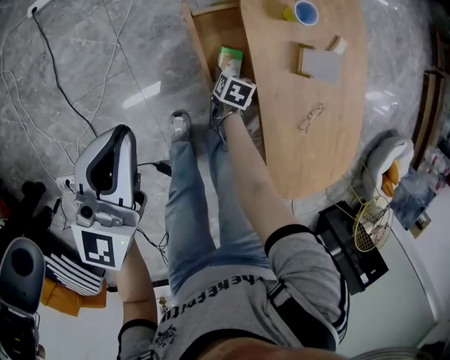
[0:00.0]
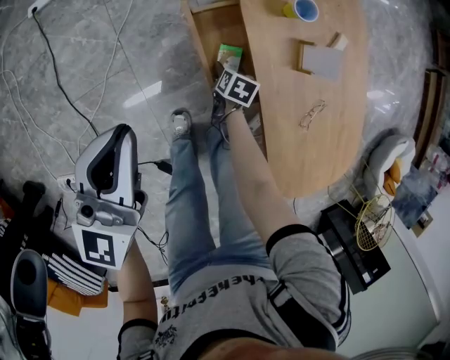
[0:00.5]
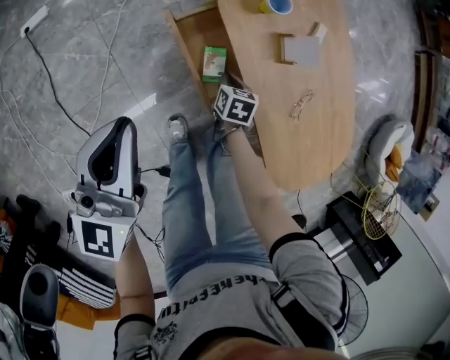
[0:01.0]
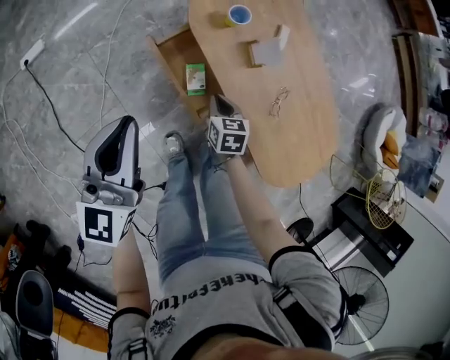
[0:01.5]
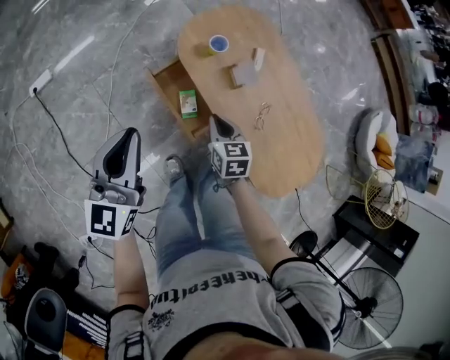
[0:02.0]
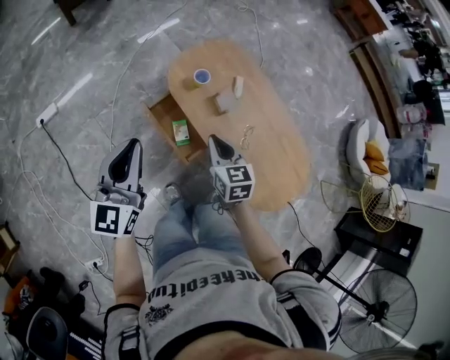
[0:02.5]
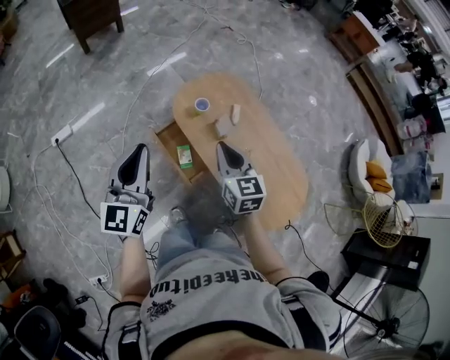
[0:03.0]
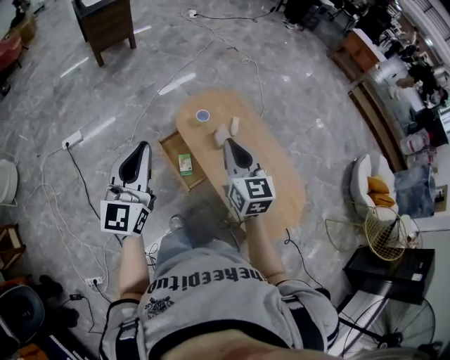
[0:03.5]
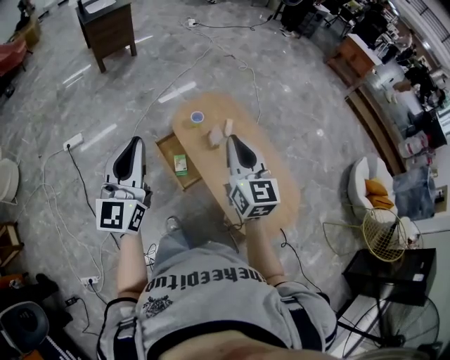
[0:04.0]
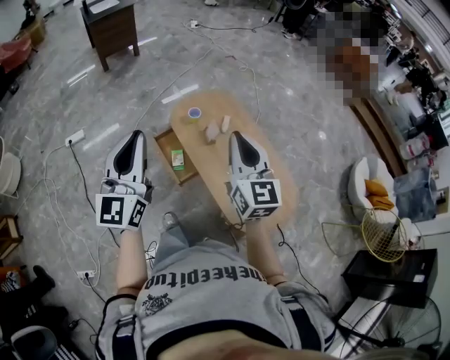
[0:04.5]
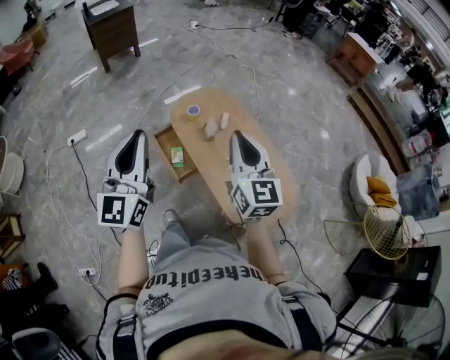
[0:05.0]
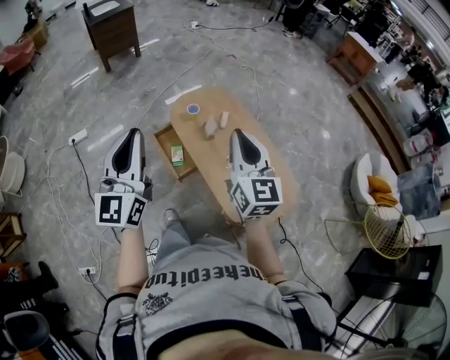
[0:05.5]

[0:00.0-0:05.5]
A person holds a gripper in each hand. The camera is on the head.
0:00.0 to 0:02.0: The left gripper moves upward, some 15 cm. The right gripper is displaced upward by about 30 cm, rotates approximately 30 degrees, and closes up.
0:02.0 to 0:03.5: The left gripper goes approximately 20 cm upward; the right gripper heads upward, covering approximately 35 cm, and points its fingers roughly 30 degrees further upward.
0:03.5 to 0:05.5: Both grippers move backward, to the right and upward, some 15 cm.

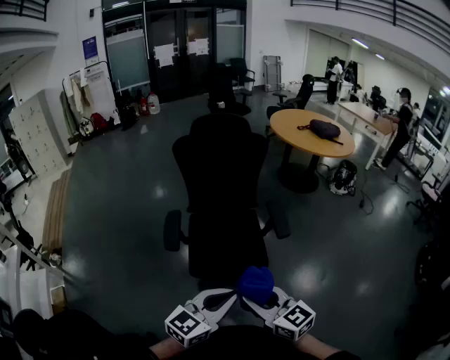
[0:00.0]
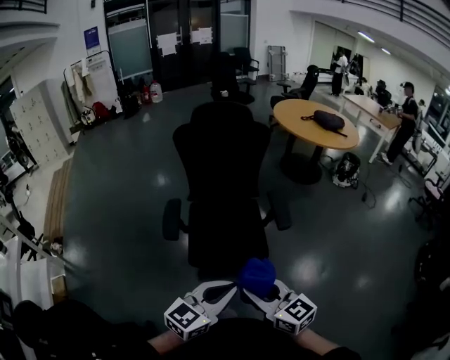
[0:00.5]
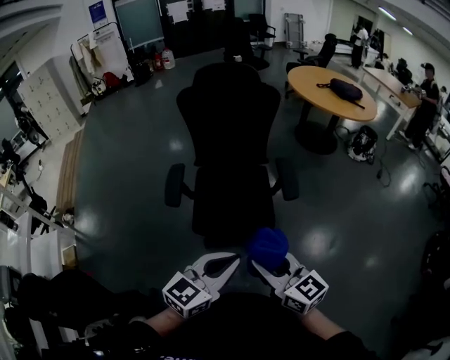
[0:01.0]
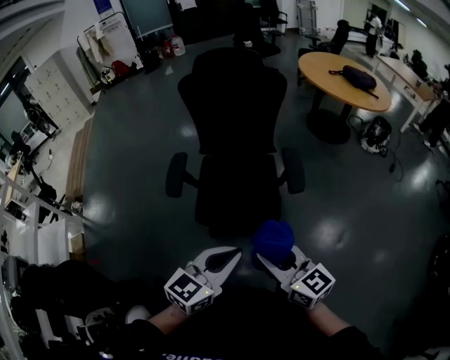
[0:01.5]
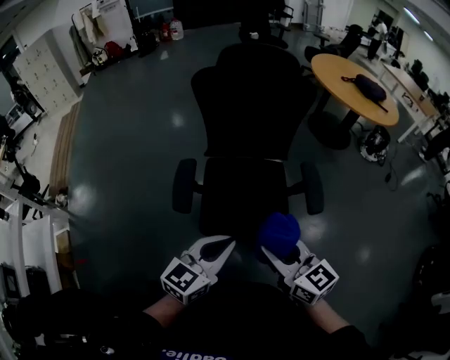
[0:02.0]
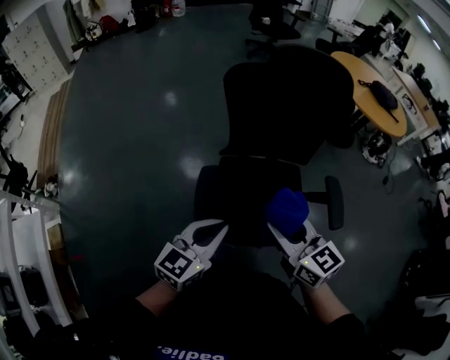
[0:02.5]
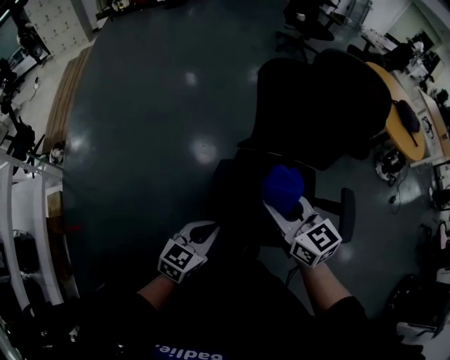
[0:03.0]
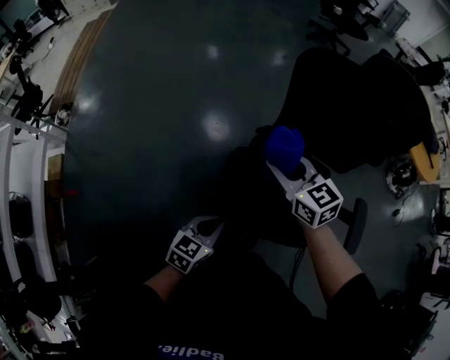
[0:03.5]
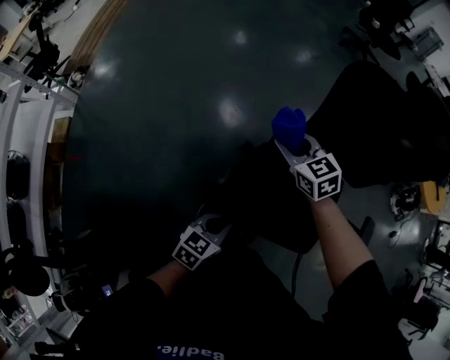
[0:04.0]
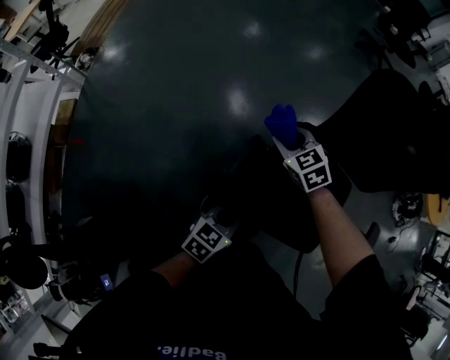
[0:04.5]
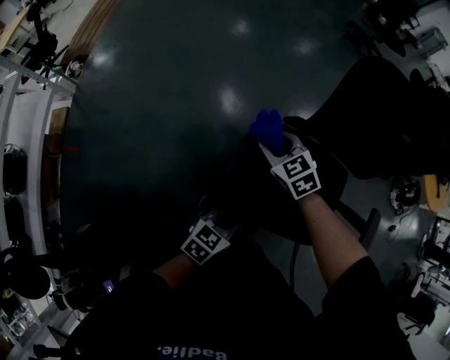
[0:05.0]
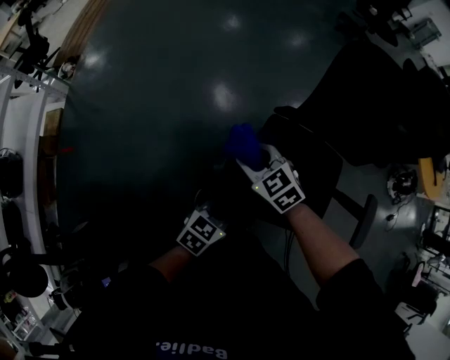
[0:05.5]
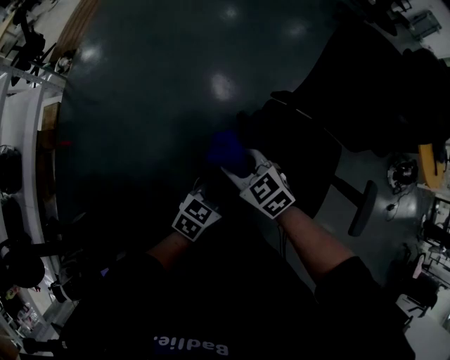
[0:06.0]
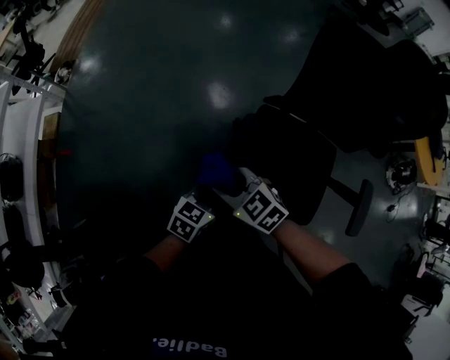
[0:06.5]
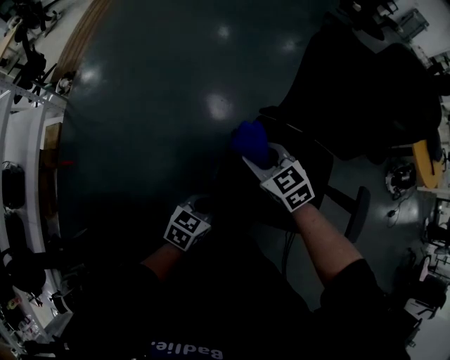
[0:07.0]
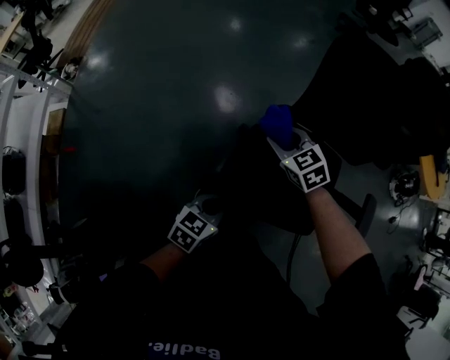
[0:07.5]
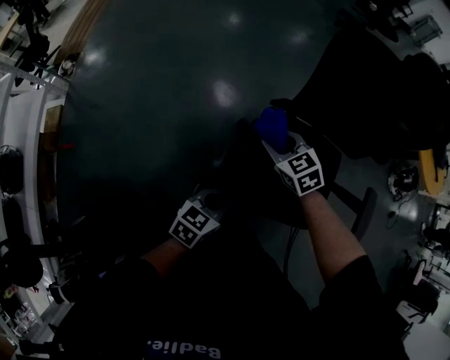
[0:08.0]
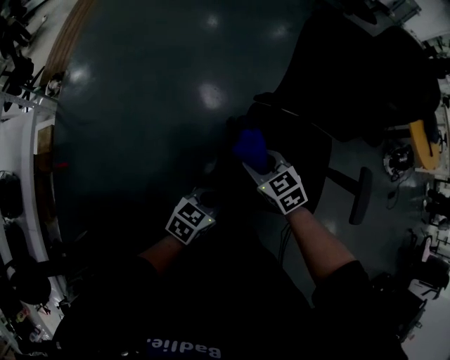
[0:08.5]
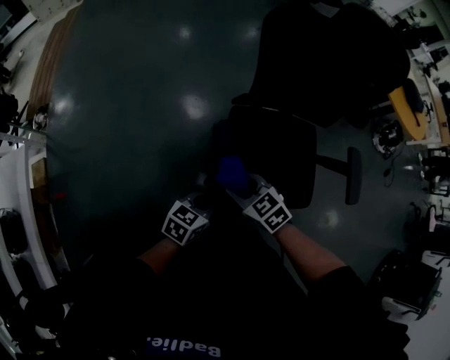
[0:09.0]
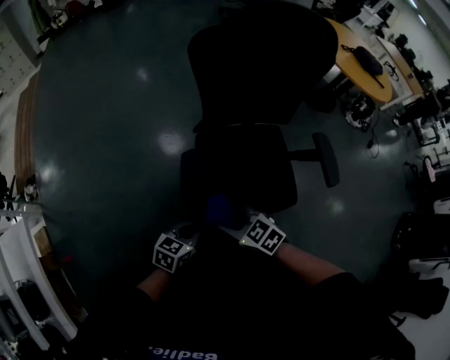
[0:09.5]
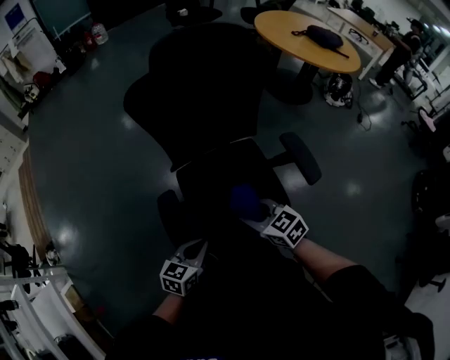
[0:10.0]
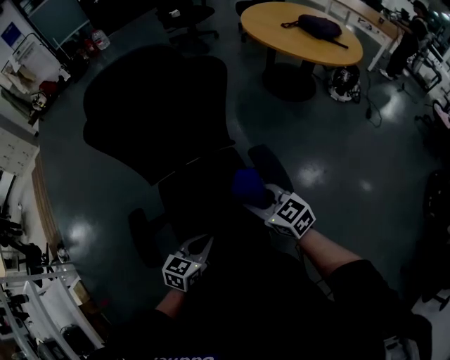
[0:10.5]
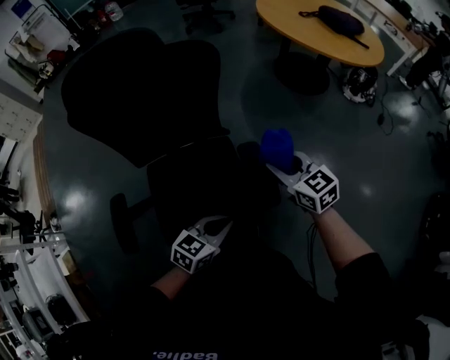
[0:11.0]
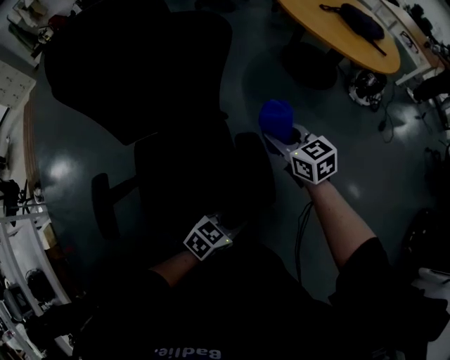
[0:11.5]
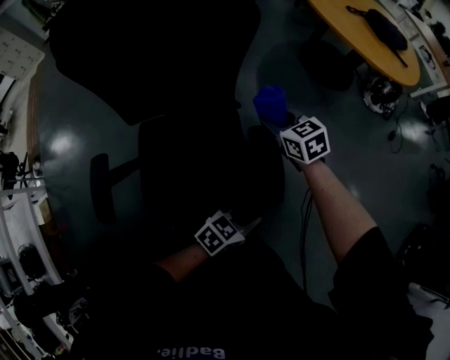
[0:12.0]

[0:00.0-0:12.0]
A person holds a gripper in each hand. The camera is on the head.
0:00.0 to 0:02.0: Both grippers travel together forward, roughly 15 cm.
0:02.0 to 0:04.0: The left gripper shifts some 35 cm downward, to the left and forward, and rotates approximately 30 degrees. Meanwhile the right gripper heads forward, to the left and downward, covering about 50 cm, and swivels approximately 40 degrees.
0:04.0 to 0:06.0: The right gripper travels backward and to the left by roughly 20 cm, and rotates approximately 20 degrees.
0:06.0 to 0:08.0: The right gripper is displaced to the right and forward by about 15 cm.
0:08.0 to 0:10.0: The right gripper shifts approximately 25 cm to the right, backward and upward, and changes its angle by some 30 degrees; the left gripper is displaced to the right and upward by approximately 10 cm, and changes its angle by some 20 degrees.
0:10.0 to 0:12.0: The pair of grippers is taken to the right and forward, some 40 cm. The left gripper swivels roughly 20 degrees.

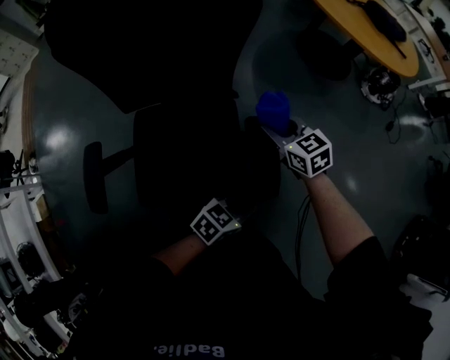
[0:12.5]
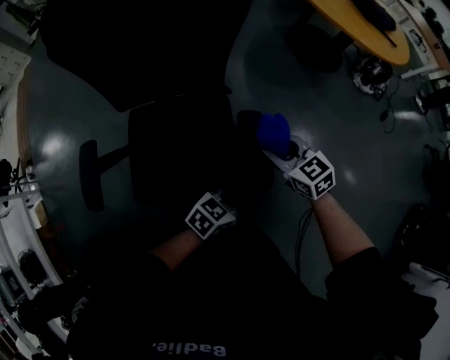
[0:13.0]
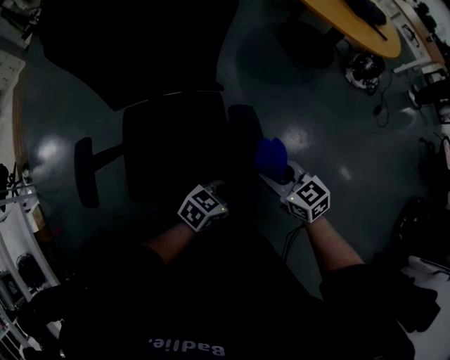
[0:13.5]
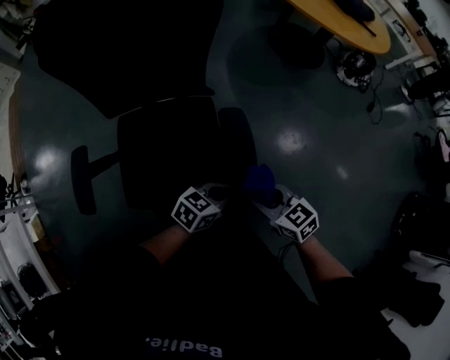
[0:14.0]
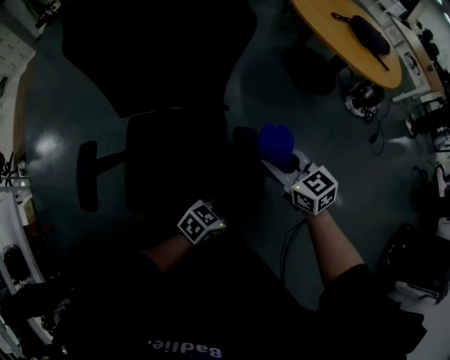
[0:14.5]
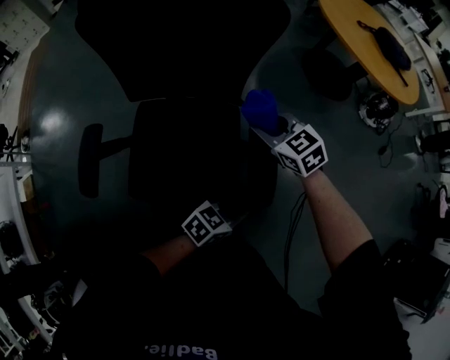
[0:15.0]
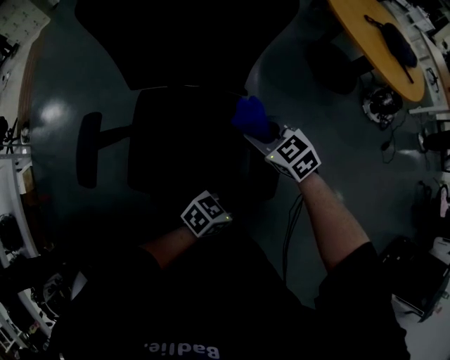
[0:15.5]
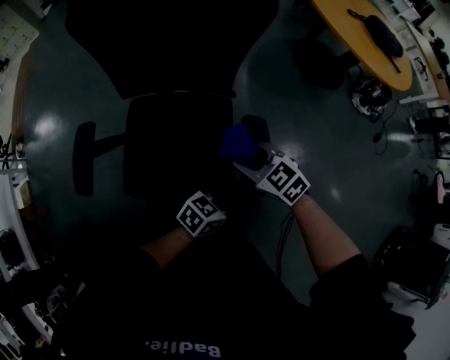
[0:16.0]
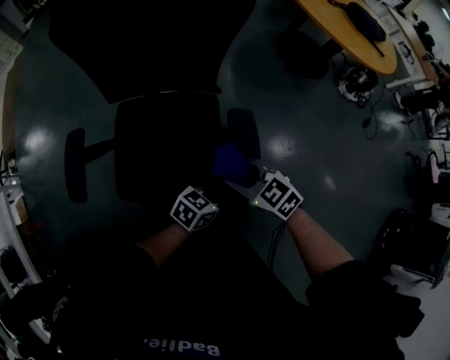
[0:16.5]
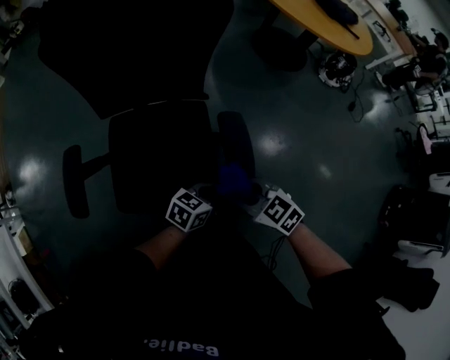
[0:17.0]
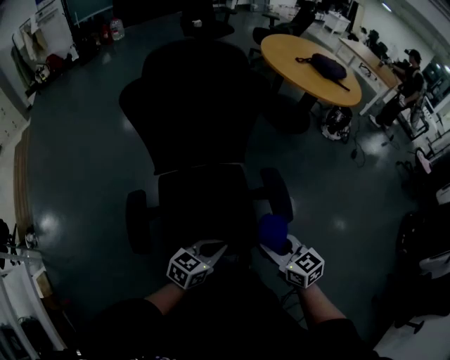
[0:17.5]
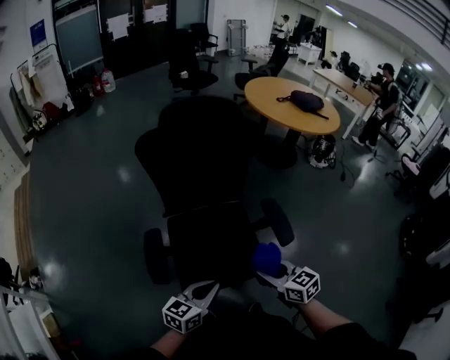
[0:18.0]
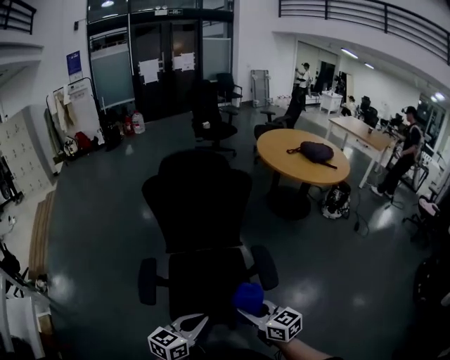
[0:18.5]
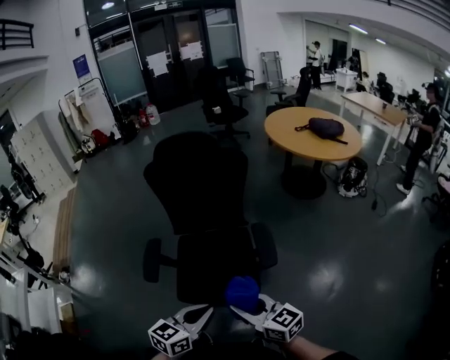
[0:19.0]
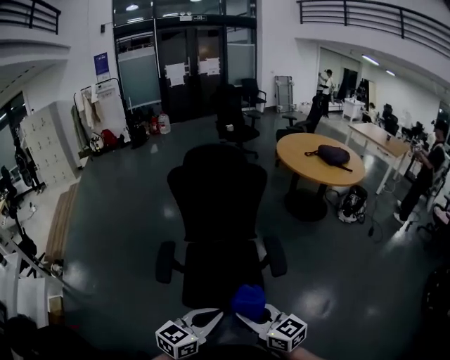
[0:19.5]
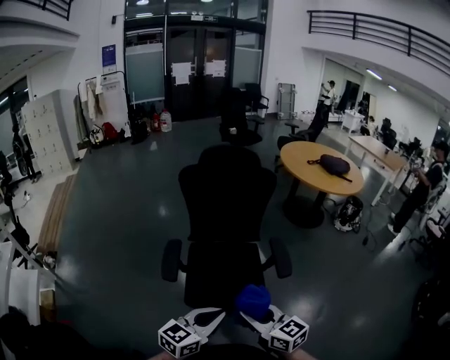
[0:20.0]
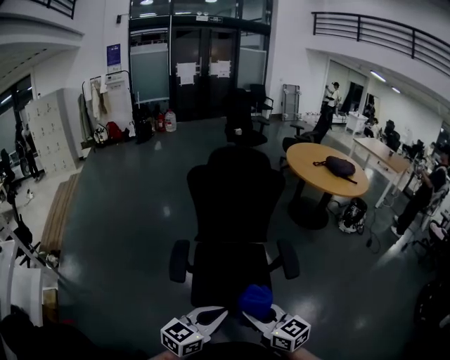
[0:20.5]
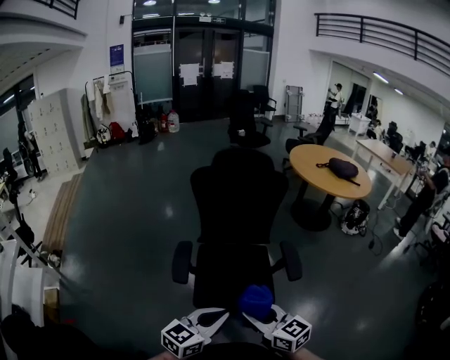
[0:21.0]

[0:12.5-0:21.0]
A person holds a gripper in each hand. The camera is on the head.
0:14.5 to 0:16.5: The right gripper ends up approximately 15 cm from where it was, and swivels roughly 20 degrees.
0:16.5 to 0:19.0: The left gripper moves some 40 cm, and changes its angle by about 30 degrees. Meanwhile the right gripper ends up roughly 35 cm from where it was, and tilts its fingers approximately 30 degrees upward.
0:19.0 to 0:21.0: The grippers both shift to the left by approximately 15 cm.

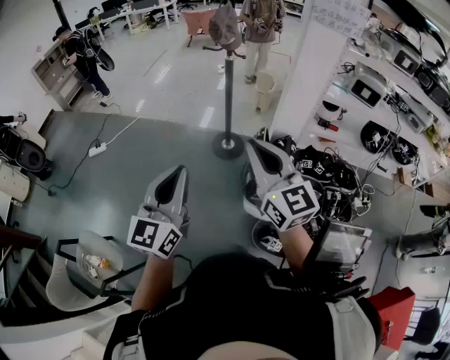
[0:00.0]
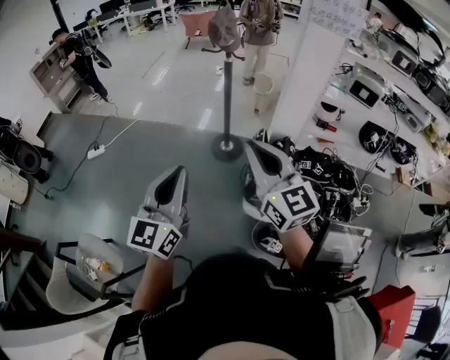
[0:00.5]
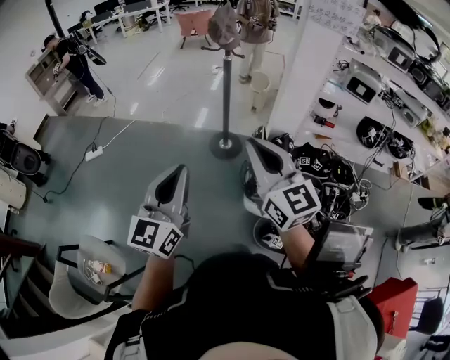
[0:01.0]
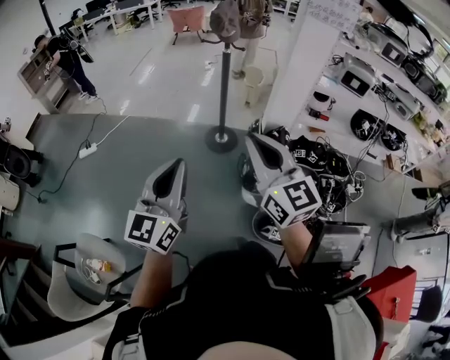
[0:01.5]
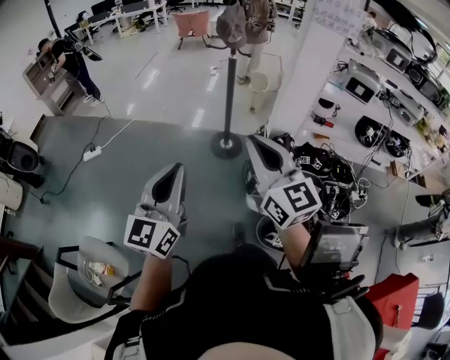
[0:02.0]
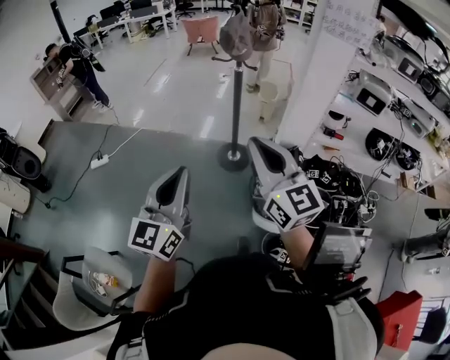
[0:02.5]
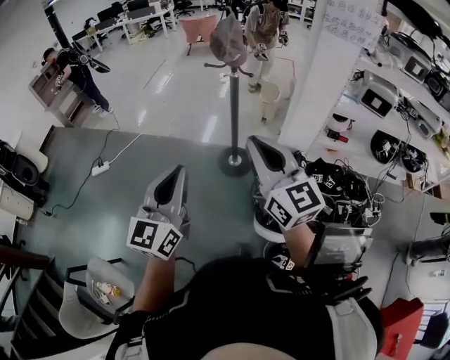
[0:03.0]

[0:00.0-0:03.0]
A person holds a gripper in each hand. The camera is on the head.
0:00.0 to 0:01.5: The two grippers go roughly 5 cm to the left.
0:01.5 to 0:03.0: The grippers both shift forward by about 15 cm.
